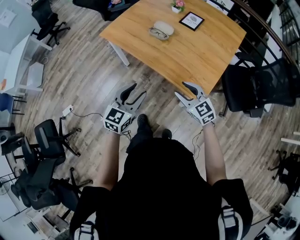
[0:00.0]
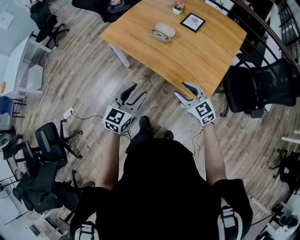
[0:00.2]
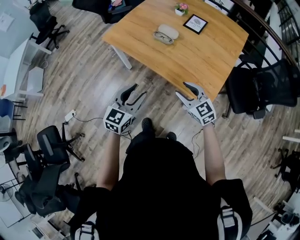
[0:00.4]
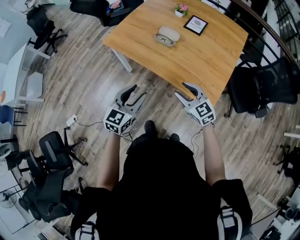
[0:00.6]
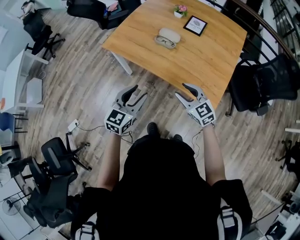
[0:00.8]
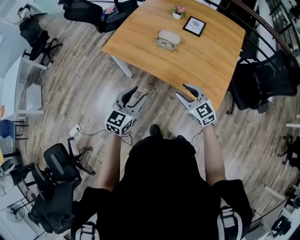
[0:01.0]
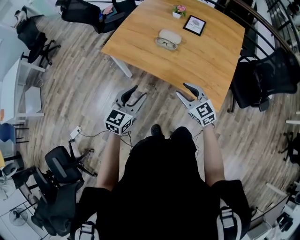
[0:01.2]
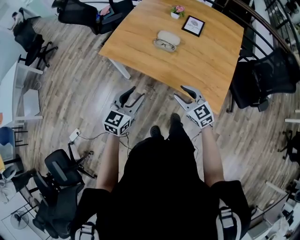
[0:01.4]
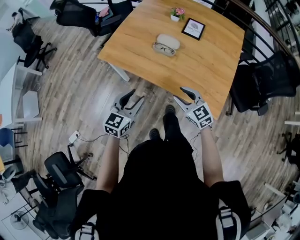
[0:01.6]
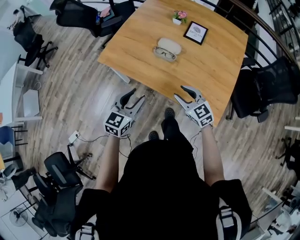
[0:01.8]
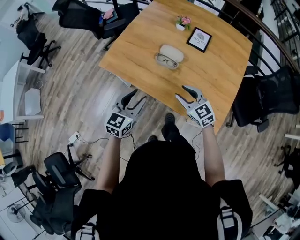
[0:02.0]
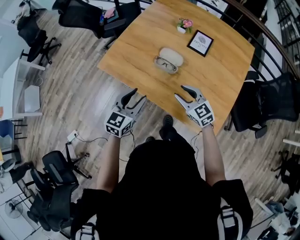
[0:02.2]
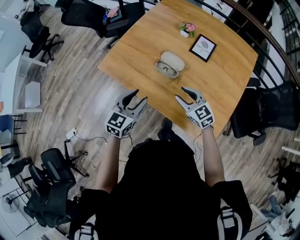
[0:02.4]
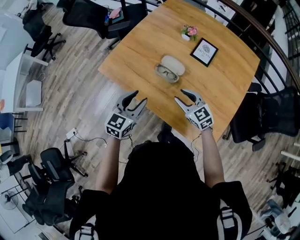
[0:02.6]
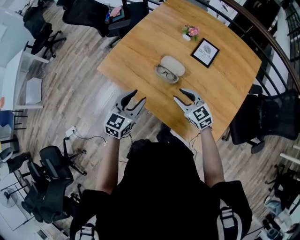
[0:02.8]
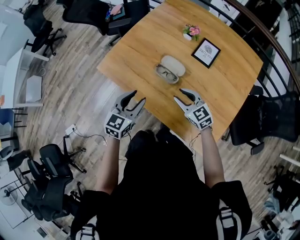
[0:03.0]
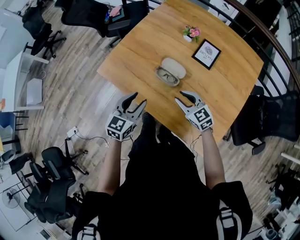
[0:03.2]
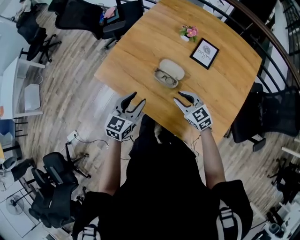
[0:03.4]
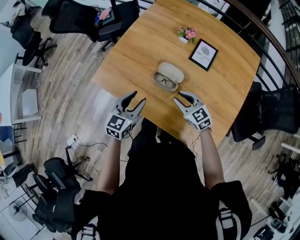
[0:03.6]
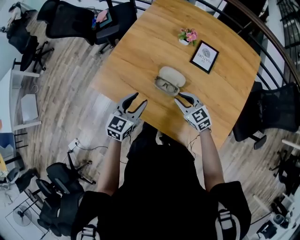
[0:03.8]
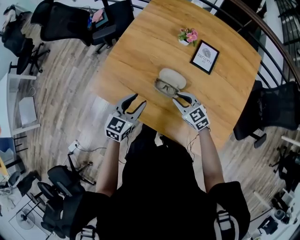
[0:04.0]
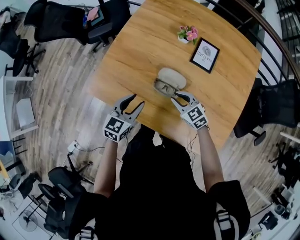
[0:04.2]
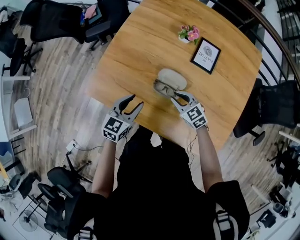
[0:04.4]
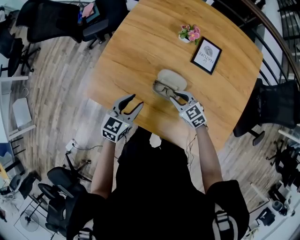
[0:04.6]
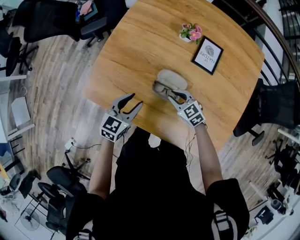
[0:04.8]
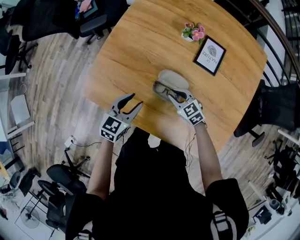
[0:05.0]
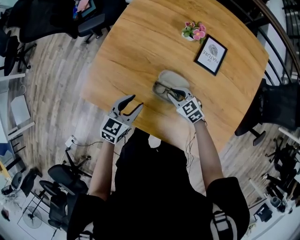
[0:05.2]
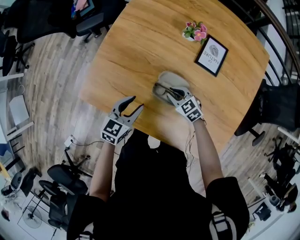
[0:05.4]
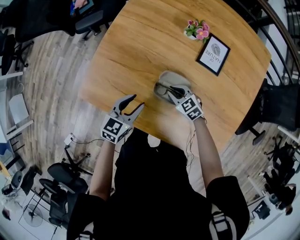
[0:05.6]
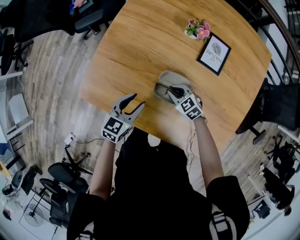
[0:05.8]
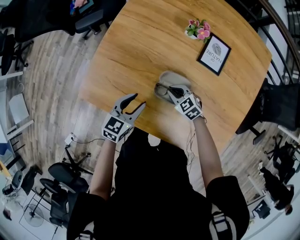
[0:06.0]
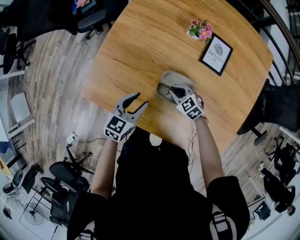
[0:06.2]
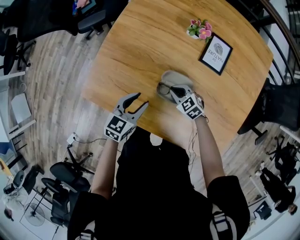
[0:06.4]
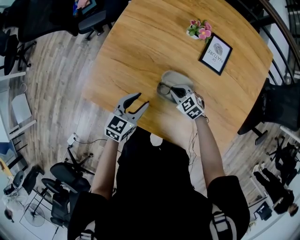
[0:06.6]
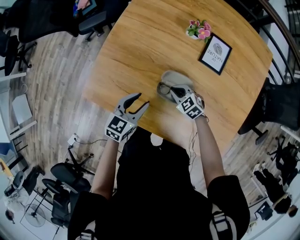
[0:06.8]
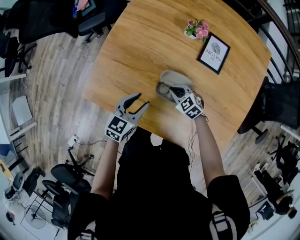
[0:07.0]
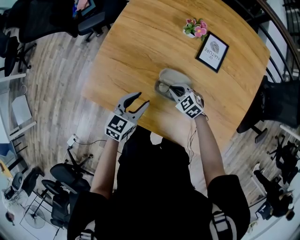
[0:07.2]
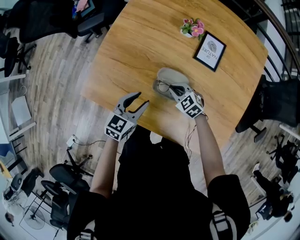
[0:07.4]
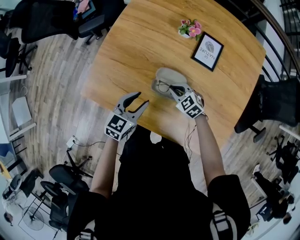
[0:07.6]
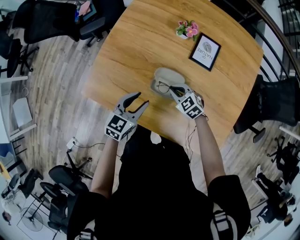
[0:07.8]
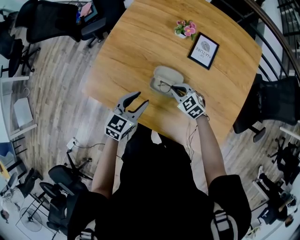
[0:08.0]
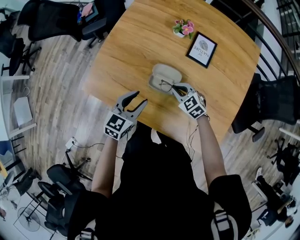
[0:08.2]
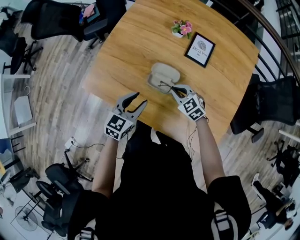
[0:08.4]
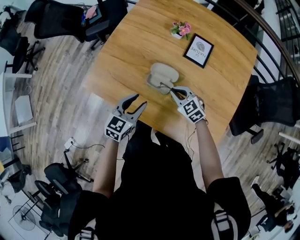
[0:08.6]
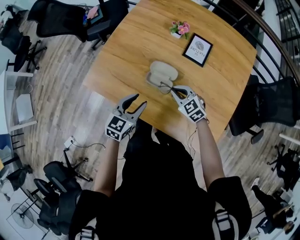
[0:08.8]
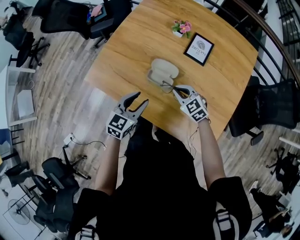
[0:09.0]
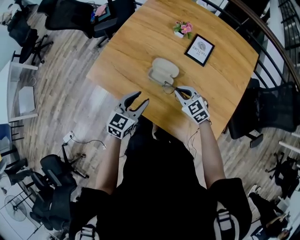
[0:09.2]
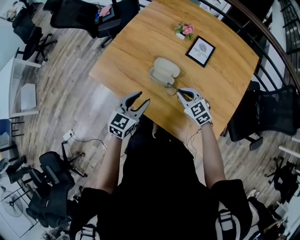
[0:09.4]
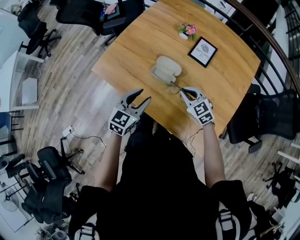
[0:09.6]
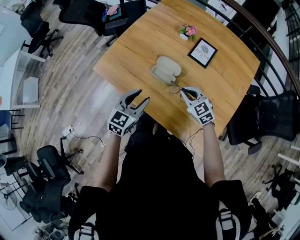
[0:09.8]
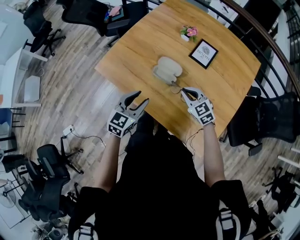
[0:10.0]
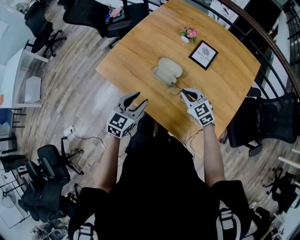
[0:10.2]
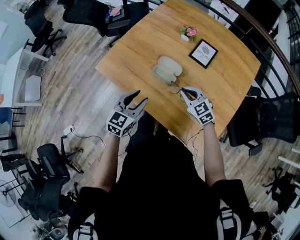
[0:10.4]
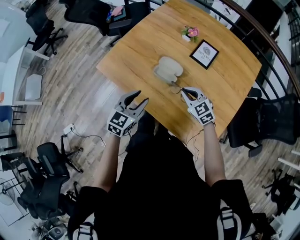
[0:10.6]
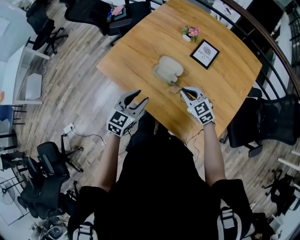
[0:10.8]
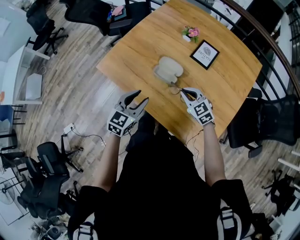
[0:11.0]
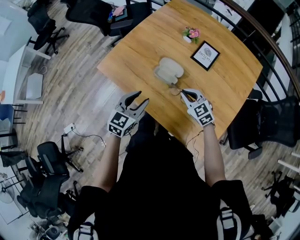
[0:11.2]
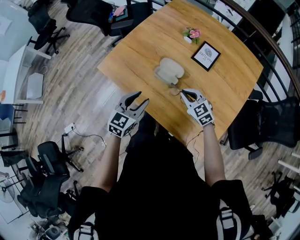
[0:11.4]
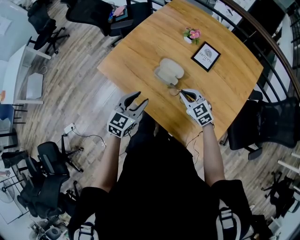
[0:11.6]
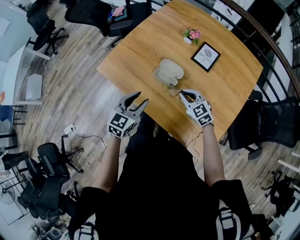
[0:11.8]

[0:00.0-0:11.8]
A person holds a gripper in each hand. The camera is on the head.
0:00.0 to 0:01.4: The right gripper moves to the left and forward, some 15 cm; the left gripper travels forward and to the left by roughly 20 cm.
0:01.4 to 0:03.0: The two grippers go approximately 20 cm forward.
0:03.0 to 0:04.4: Both grippers travel together forward and downward, about 15 cm.
0:04.4 to 0:06.0: The right gripper heads downward and forward, covering roughly 10 cm; the left gripper shifts about 5 cm downward.
0:06.0 to 0:07.4: The grippers move only a little.
0:07.4 to 0:08.8: The right gripper shifts about 10 cm upward and backward. Meanwhile the left gripper travels backward and upward by about 10 cm.
0:08.8 to 0:10.4: Both grippers travel together backward, about 5 cm.
0:10.4 to 0:11.8: The grippers move only a little.

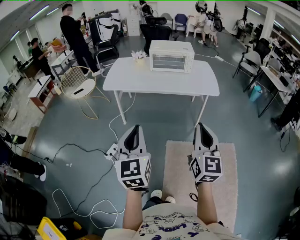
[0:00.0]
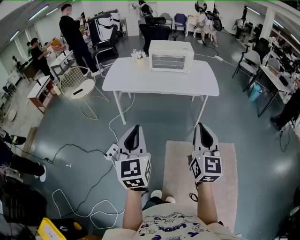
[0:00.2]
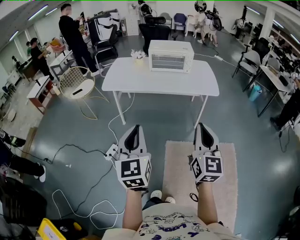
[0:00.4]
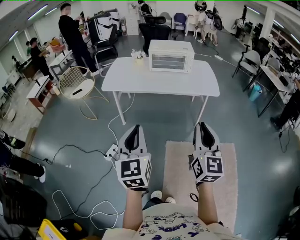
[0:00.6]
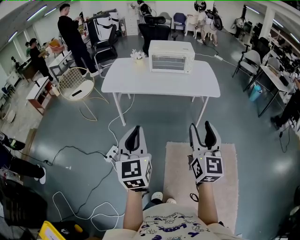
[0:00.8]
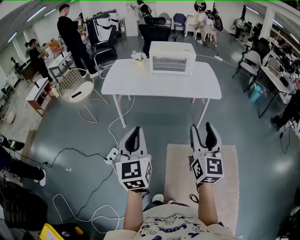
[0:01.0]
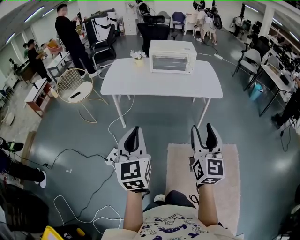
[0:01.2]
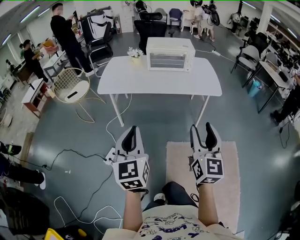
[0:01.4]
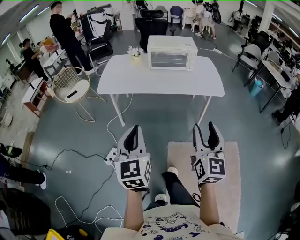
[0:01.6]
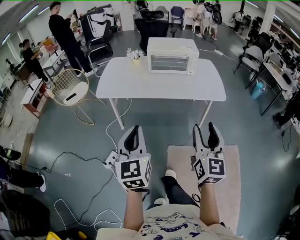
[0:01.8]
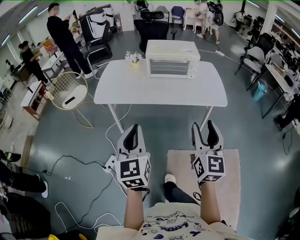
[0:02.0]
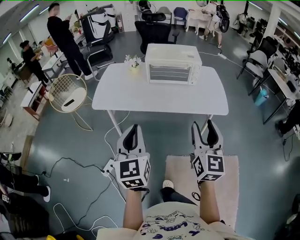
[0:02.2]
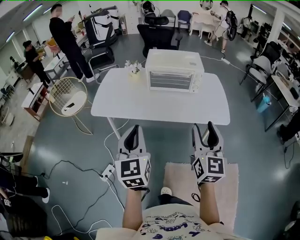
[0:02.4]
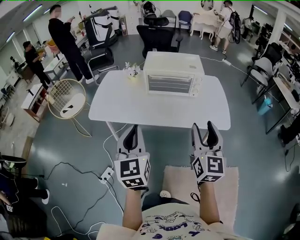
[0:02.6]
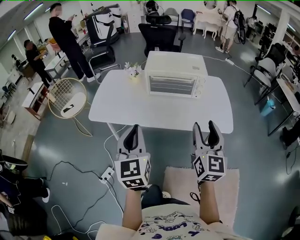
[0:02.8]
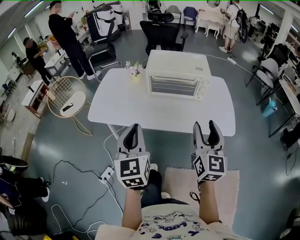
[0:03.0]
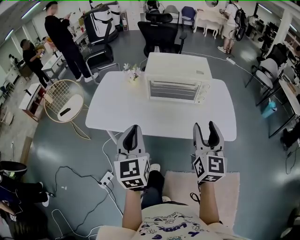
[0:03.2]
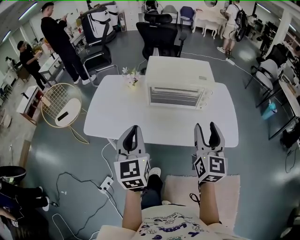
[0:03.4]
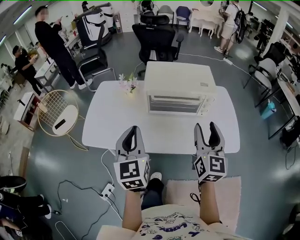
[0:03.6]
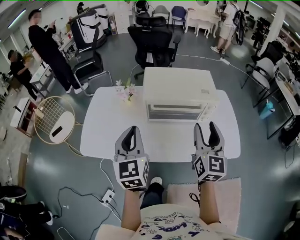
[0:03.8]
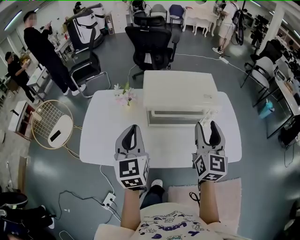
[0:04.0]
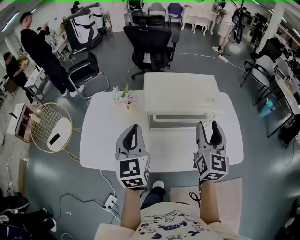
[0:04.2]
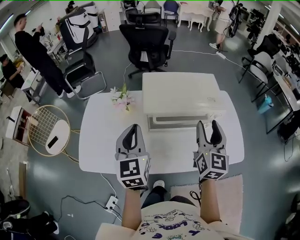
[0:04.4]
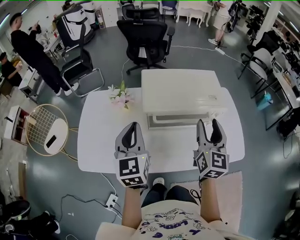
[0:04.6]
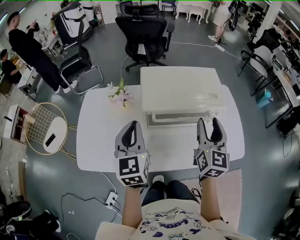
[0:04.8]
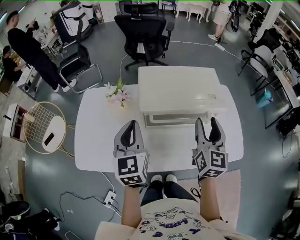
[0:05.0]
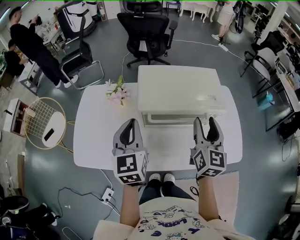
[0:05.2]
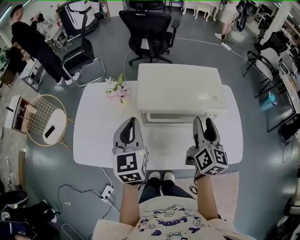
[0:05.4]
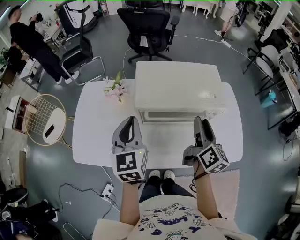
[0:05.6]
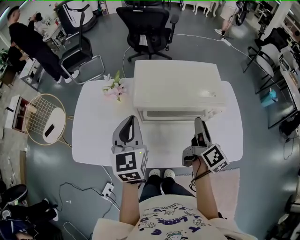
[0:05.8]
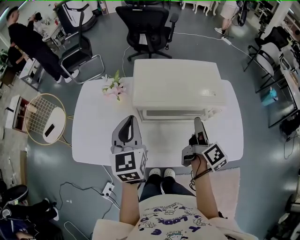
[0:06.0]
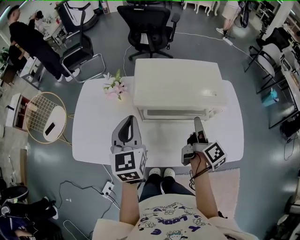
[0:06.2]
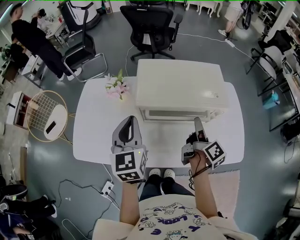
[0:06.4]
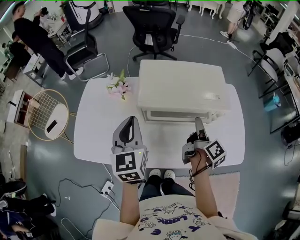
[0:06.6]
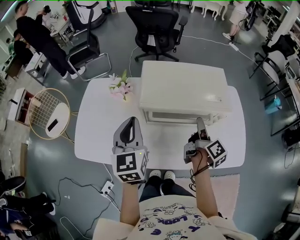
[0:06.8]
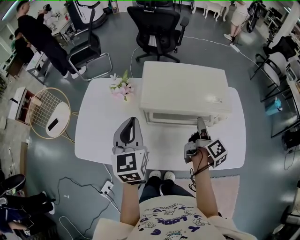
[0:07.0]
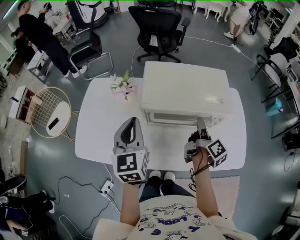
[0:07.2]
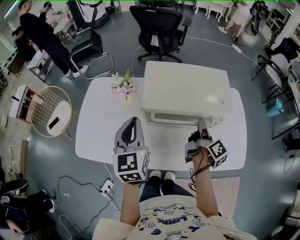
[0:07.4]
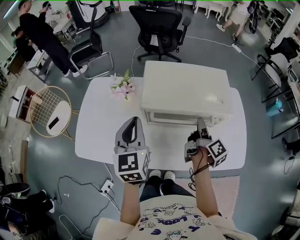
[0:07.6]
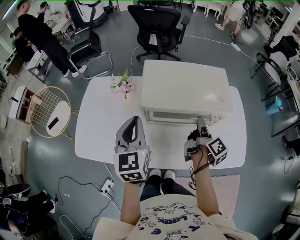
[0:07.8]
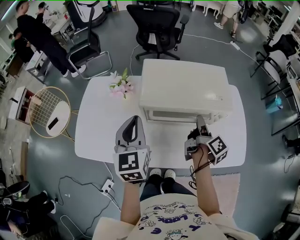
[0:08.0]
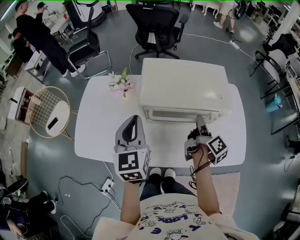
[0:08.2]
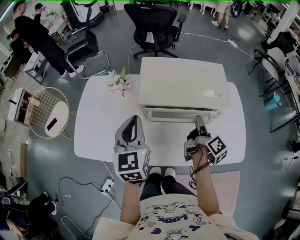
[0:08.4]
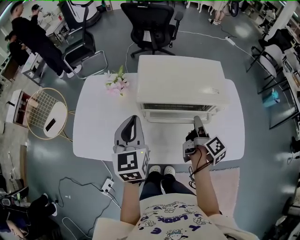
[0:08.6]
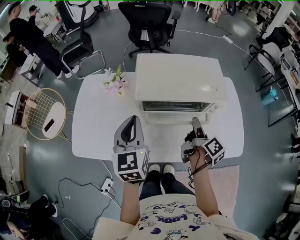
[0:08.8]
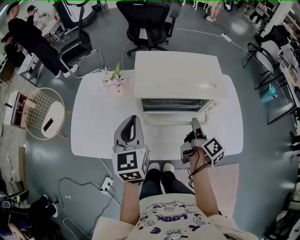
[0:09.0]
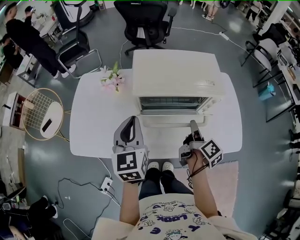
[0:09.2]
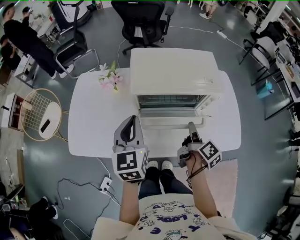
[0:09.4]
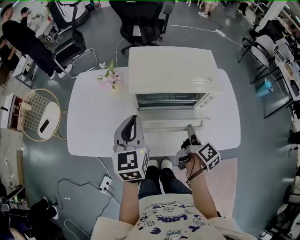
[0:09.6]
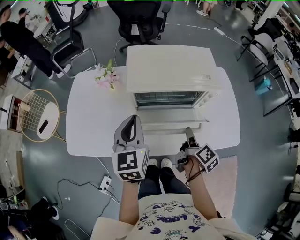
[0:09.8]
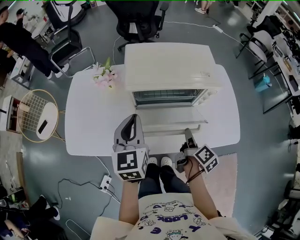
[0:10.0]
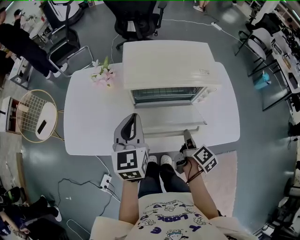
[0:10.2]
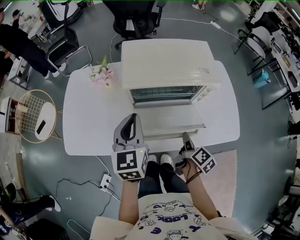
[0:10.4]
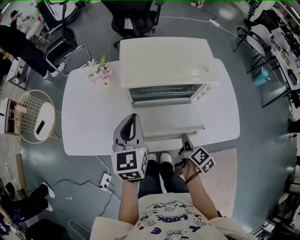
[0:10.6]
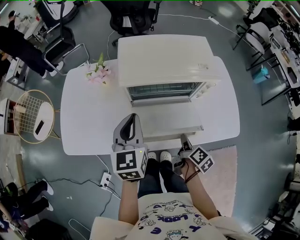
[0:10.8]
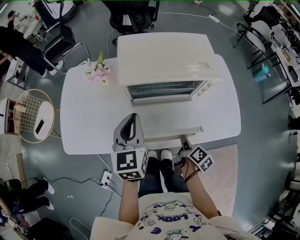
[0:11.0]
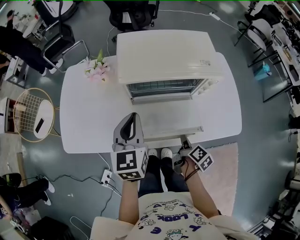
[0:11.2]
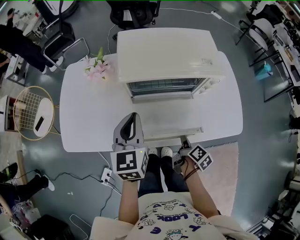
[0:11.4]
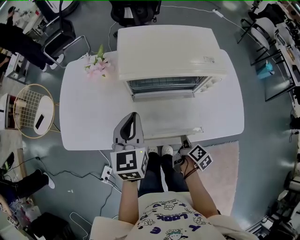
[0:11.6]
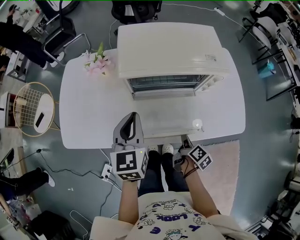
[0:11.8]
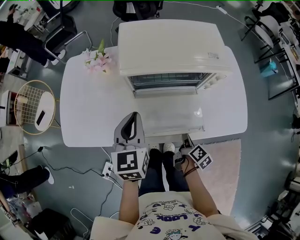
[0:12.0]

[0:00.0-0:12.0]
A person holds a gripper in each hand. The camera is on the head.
0:00.0 to 0:01.6: Both grippers move forward, roughly 10 cm. The right gripper opens up.
0:01.6 to 0:03.0: Both grippers travel together forward, approximately 35 cm.
0:03.0 to 0:04.4: The grippers both shift forward by about 35 cm.
0:04.4 to 0:06.0: The right gripper is displaced downward by approximately 10 cm, and twists roughly 60 degrees clockwise, seen from behind. Meanwhile the left gripper ends up some 5 cm from where it was.
0:06.0 to 0:07.6: The right gripper moves about 5 cm, and closes up.
0:07.6 to 0:09.0: The right gripper moves backward, about 5 cm.
0:09.0 to 0:10.4: The right gripper shifts approximately 15 cm backward and downward.
0:10.4 to 0:12.0: The right gripper goes roughly 10 cm downward. The left gripper travels downward by approximately 5 cm.
